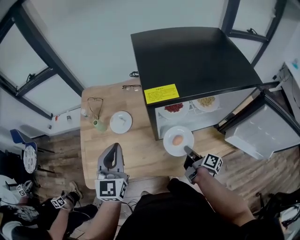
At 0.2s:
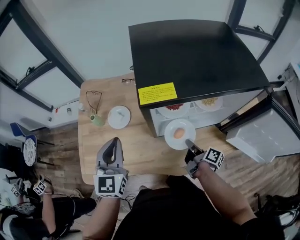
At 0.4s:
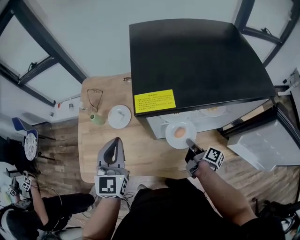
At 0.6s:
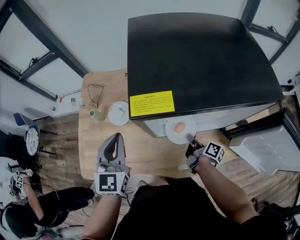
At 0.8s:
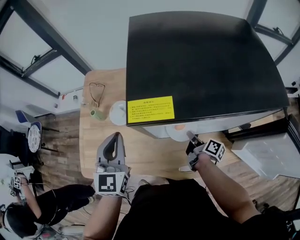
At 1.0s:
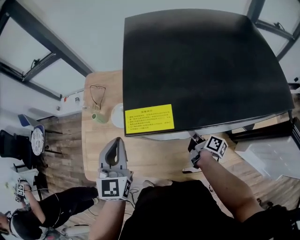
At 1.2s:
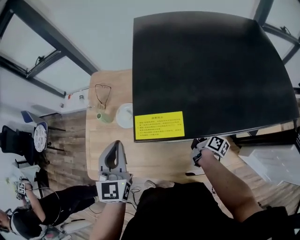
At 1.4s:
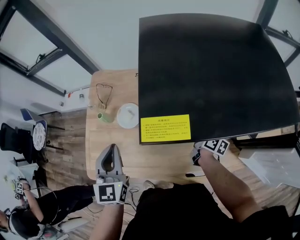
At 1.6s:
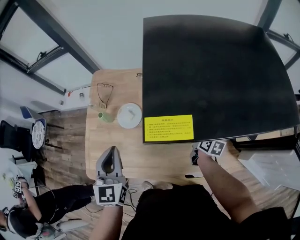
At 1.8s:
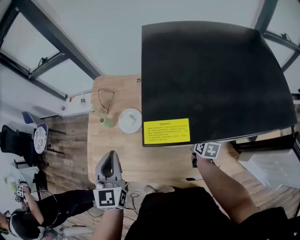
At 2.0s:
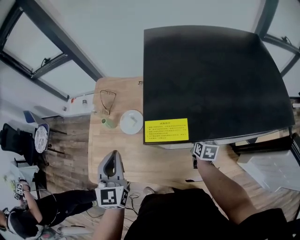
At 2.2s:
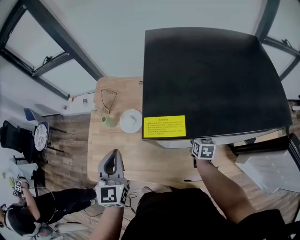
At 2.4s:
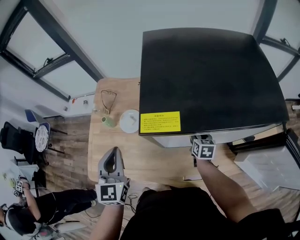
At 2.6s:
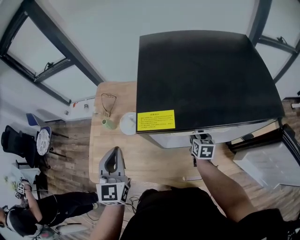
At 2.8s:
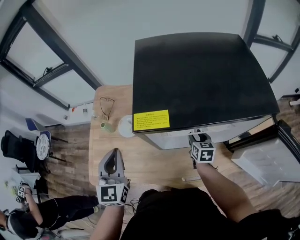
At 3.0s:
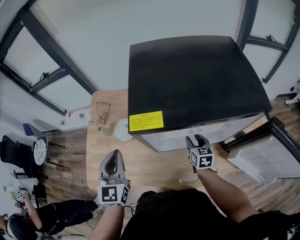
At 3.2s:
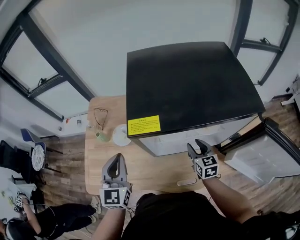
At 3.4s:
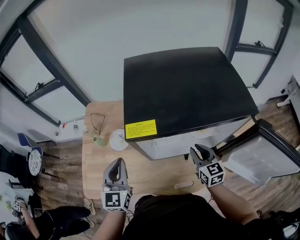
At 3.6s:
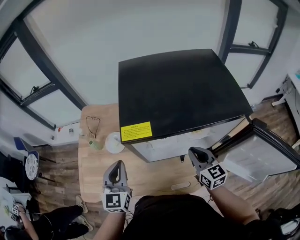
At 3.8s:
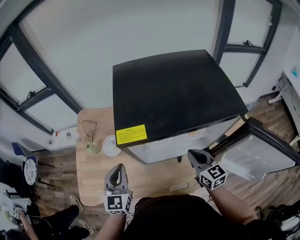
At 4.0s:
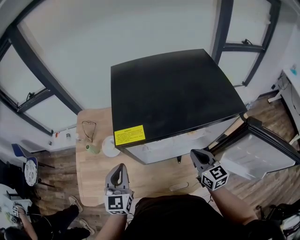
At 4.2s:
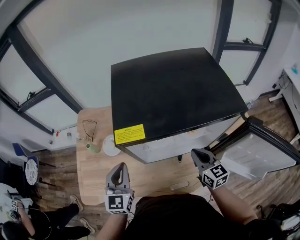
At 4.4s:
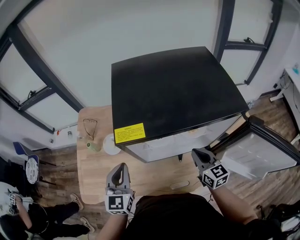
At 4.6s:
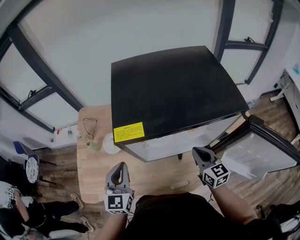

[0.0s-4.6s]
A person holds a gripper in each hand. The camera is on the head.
0.0s to 1.6s: The right gripper is displaced forward by roughly 15 cm, and rotates some 40 degrees.
1.6s to 3.0s: The left gripper moves some 5 cm. Meanwhile the right gripper is displaced upward by roughly 5 cm, swivels some 30 degrees, and opens.
3.0s to 4.6s: The left gripper shifts some 5 cm to the right, while the right gripper travels upward, backward and to the right by roughly 15 cm, and closes.

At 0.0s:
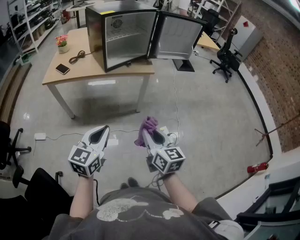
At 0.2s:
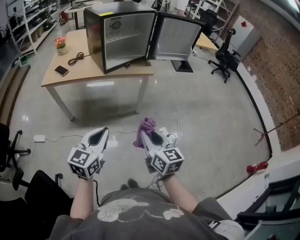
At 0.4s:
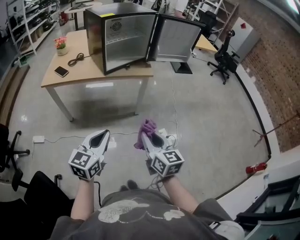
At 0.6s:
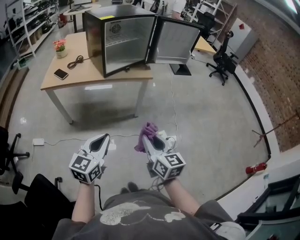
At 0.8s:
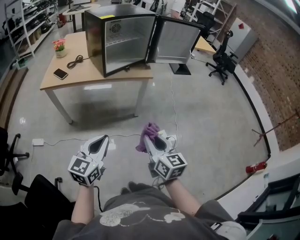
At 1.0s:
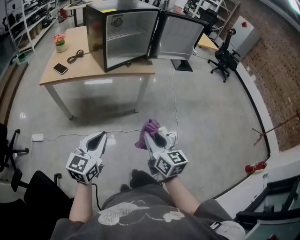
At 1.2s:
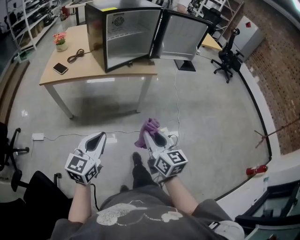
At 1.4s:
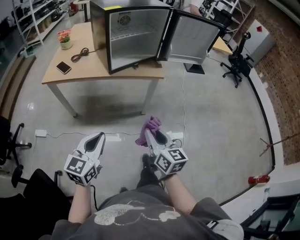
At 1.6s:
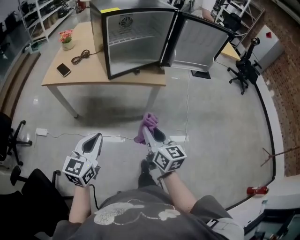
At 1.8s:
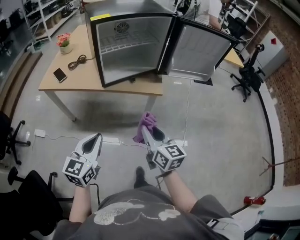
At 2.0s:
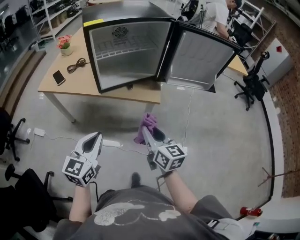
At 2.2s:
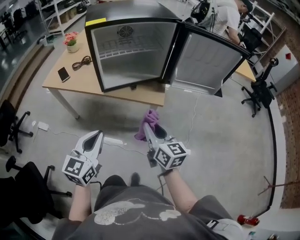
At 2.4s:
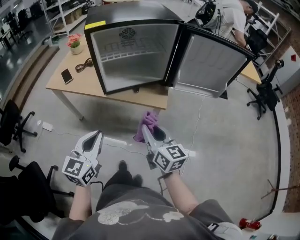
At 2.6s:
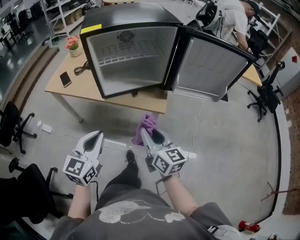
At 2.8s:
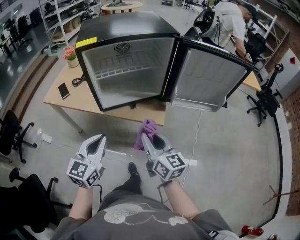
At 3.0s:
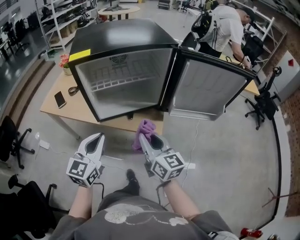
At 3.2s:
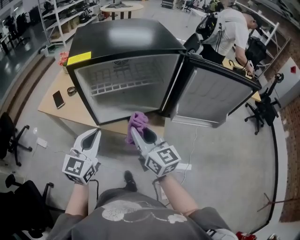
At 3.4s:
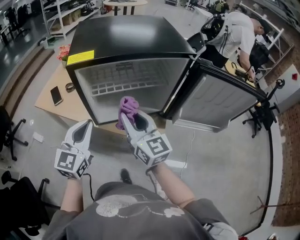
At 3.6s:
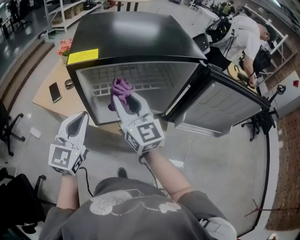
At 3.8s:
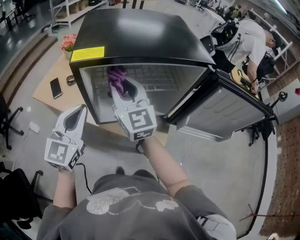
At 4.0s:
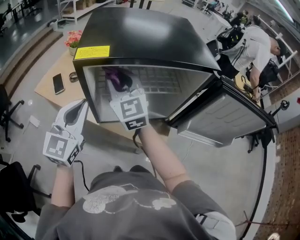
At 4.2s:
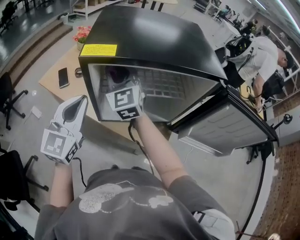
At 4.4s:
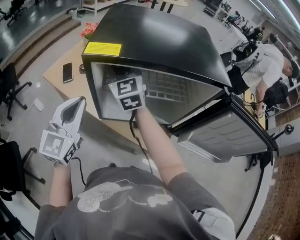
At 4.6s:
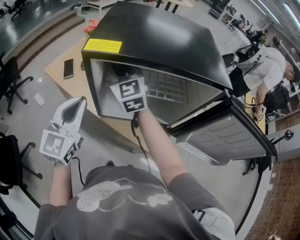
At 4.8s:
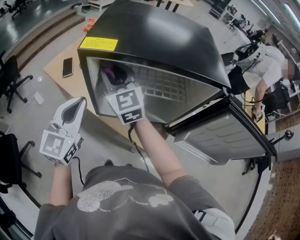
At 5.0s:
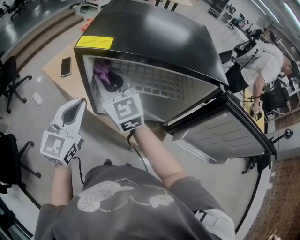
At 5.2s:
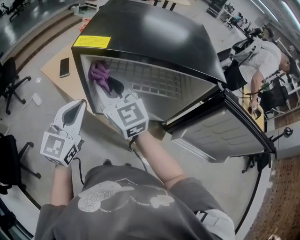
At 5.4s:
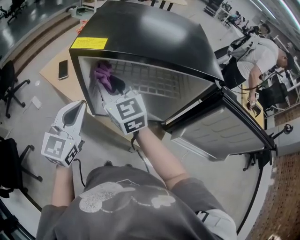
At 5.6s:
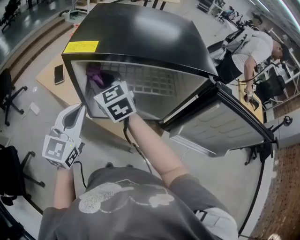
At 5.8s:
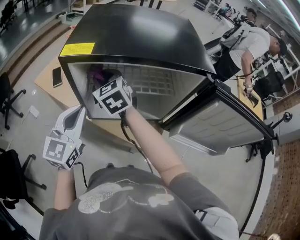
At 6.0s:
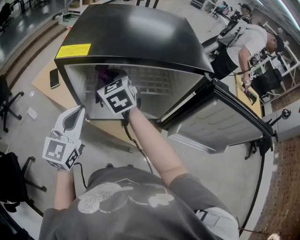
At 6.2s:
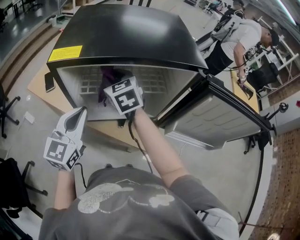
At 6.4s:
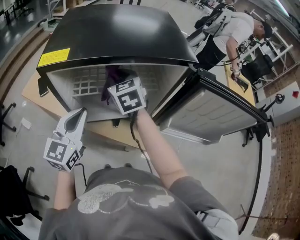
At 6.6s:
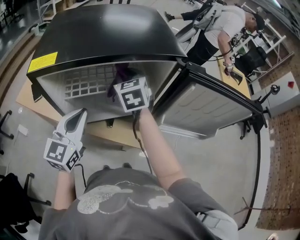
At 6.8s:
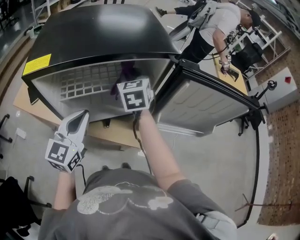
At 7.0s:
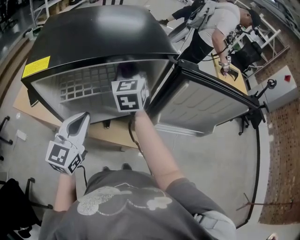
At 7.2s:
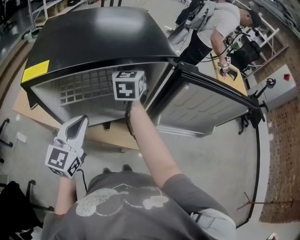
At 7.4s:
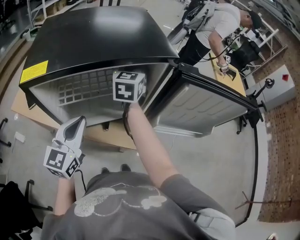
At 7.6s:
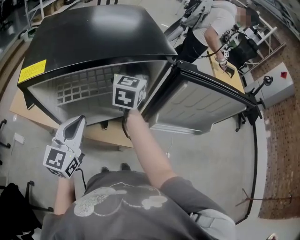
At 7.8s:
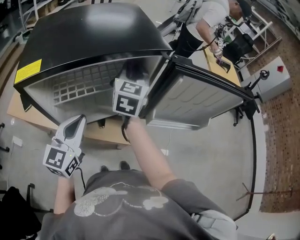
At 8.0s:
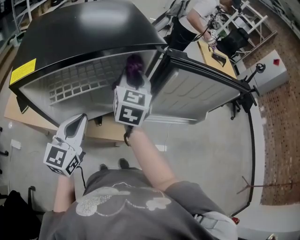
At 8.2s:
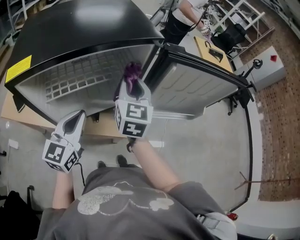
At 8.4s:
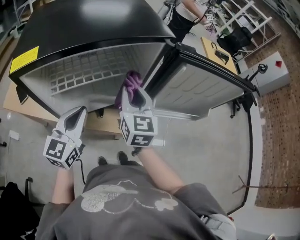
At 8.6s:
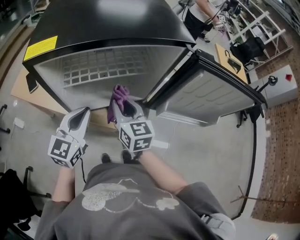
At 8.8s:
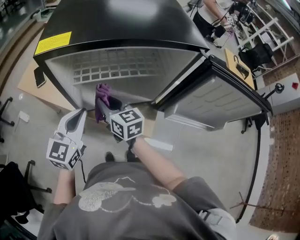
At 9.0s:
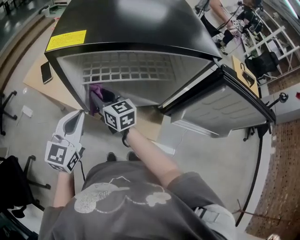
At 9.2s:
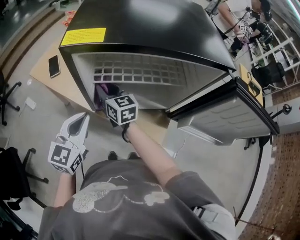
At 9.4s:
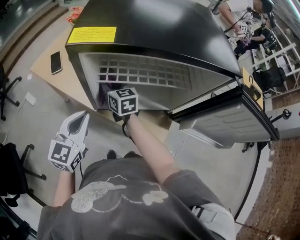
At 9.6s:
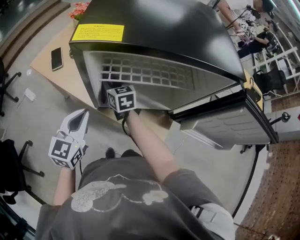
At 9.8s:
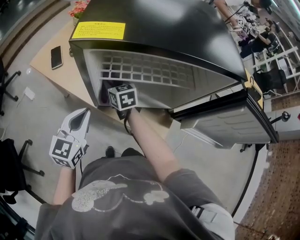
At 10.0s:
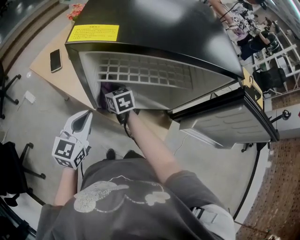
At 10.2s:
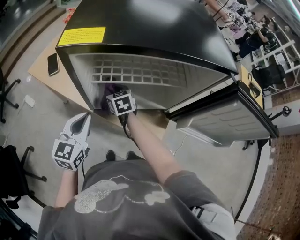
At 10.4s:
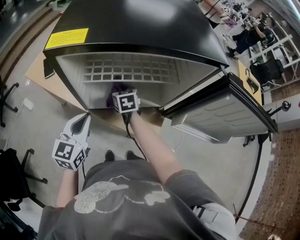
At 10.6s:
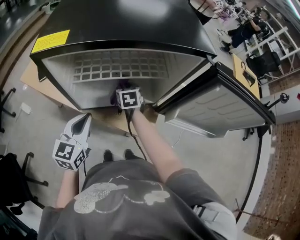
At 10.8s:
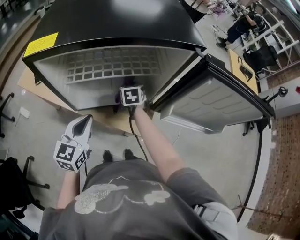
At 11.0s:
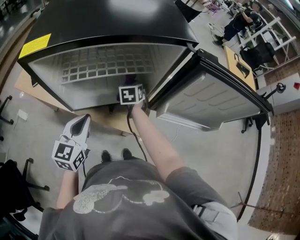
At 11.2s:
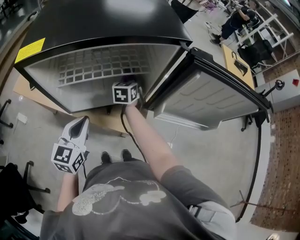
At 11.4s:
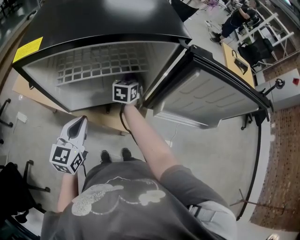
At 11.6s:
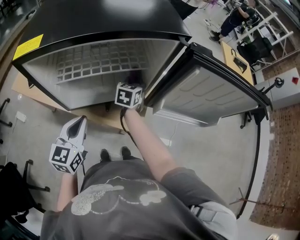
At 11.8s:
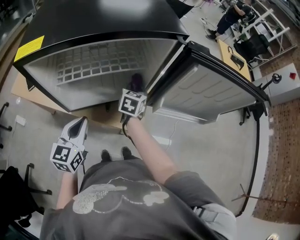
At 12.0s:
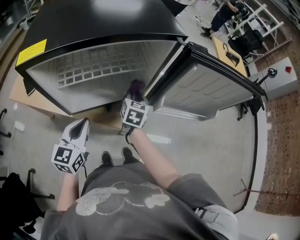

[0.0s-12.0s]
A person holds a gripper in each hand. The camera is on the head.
0.0s to 1.6s: The left gripper goes some 10 cm forward. The right gripper heads forward, covering about 20 cm.
1.6s to 3.0s: The right gripper travels forward by approximately 25 cm. Meanwhile the left gripper goes about 30 cm forward and to the right.
3.0s to 4.4s: The left gripper is displaced forward, to the left and upward by some 20 cm, and rotates about 20 degrees, while the right gripper heads forward and to the left, covering approximately 40 cm, and changes its angle by roughly 40 degrees.
4.4s to 6.0s: The left gripper goes roughly 5 cm to the right. Meanwhile the right gripper goes backward and returns, roughly 10 cm each way, and rotates approximately 20 degrees.
6.0s to 7.6s: The left gripper shifts by some 10 cm. The right gripper shifts by roughly 25 cm, and rotates some 50 degrees.
7.6s to 9.0s: The right gripper shifts by roughly 30 cm, and rotates about 60 degrees. The left gripper shifts by approximately 10 cm.
9.0s to 10.4s: The right gripper moves downward, to the right and forward, some 15 cm, and turns by some 30 degrees. The left gripper moves downward, some 5 cm.
10.4s to 12.0s: The right gripper shifts by about 20 cm, and swivels approximately 40 degrees, while the left gripper changes place by roughly 5 cm.

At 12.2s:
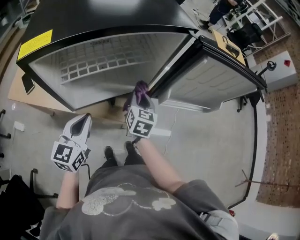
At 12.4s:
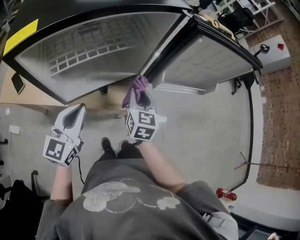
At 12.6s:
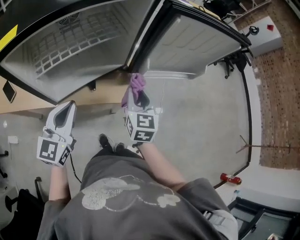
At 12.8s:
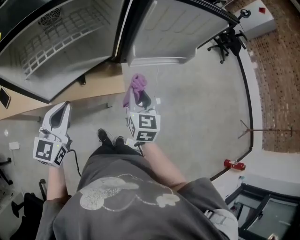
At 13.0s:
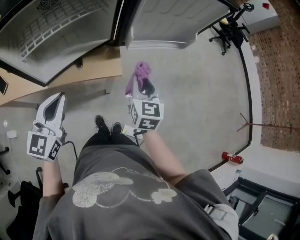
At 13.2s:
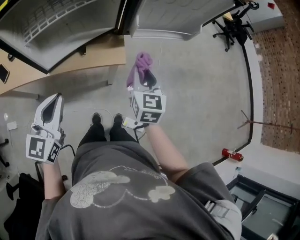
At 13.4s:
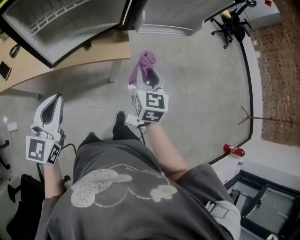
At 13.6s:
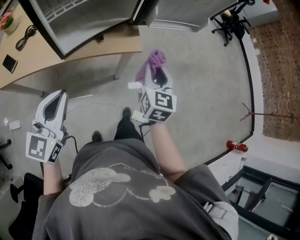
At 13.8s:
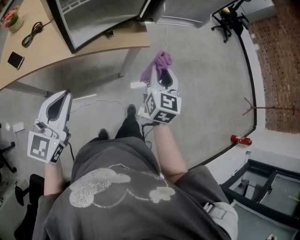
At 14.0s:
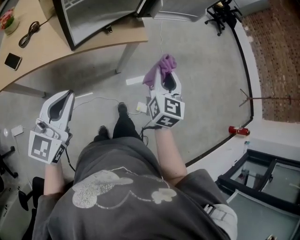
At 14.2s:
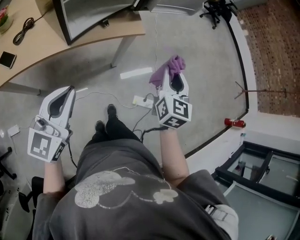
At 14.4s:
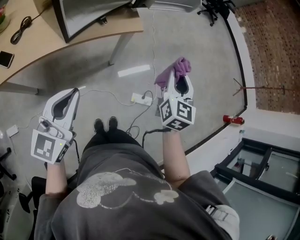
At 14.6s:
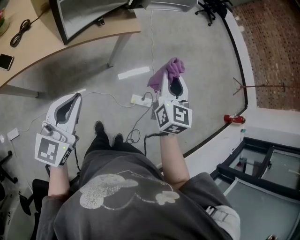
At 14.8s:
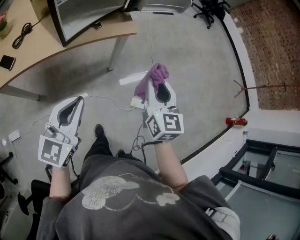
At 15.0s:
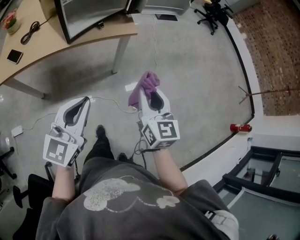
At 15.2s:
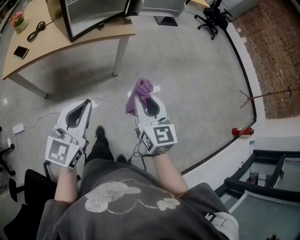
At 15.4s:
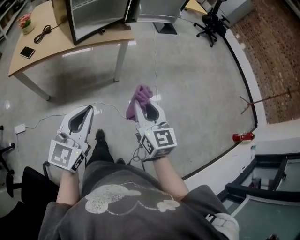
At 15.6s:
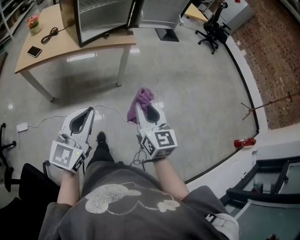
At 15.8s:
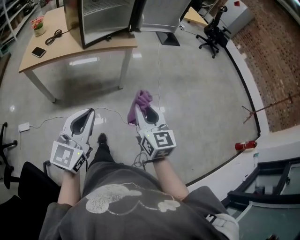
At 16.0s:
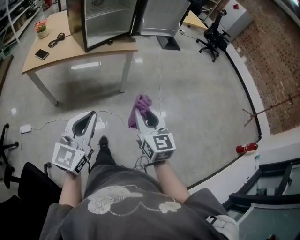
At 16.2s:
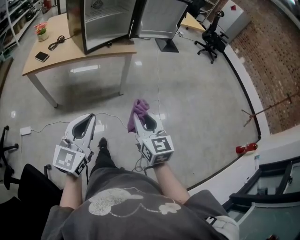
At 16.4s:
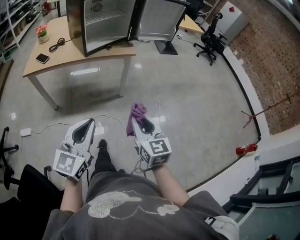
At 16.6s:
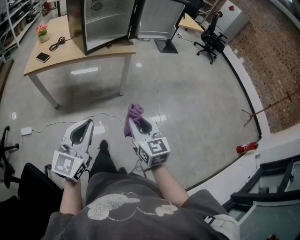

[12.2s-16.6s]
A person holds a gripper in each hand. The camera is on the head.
12.2s to 13.6s: The left gripper travels backward by about 15 cm, and changes its angle by approximately 20 degrees. The right gripper heads backward and to the right, covering approximately 25 cm.
13.6s to 15.2s: The left gripper moves backward and to the right, roughly 25 cm. The right gripper moves backward, approximately 30 cm.
15.2s to 16.6s: The grippers both shift backward by about 15 cm.

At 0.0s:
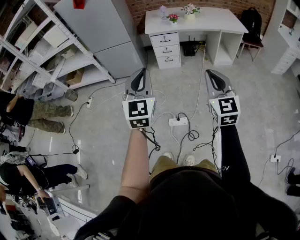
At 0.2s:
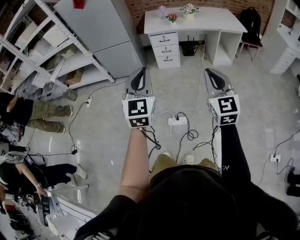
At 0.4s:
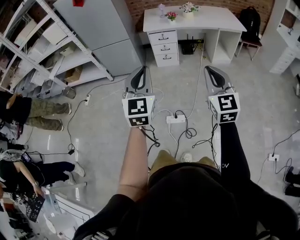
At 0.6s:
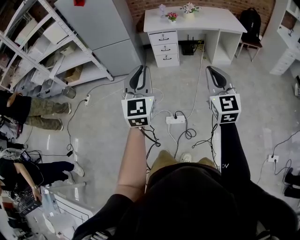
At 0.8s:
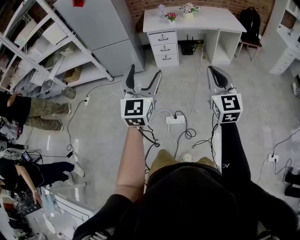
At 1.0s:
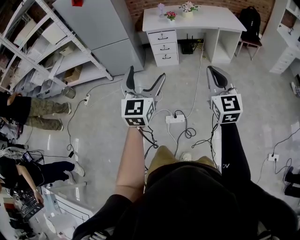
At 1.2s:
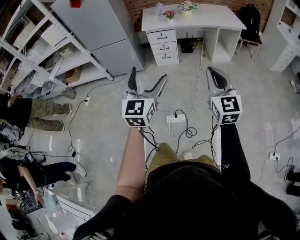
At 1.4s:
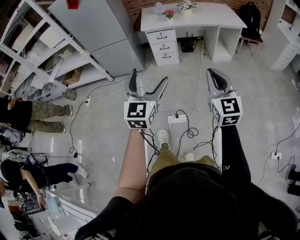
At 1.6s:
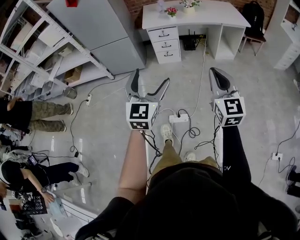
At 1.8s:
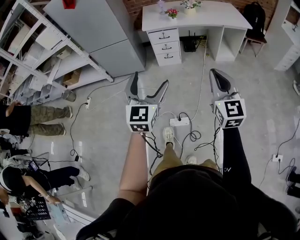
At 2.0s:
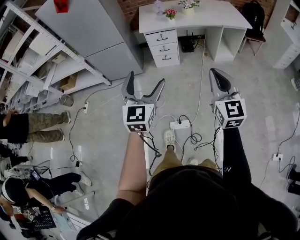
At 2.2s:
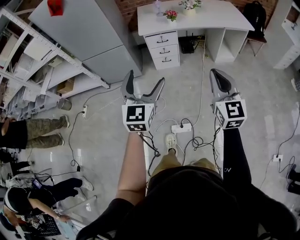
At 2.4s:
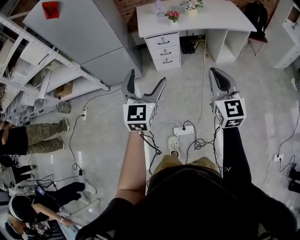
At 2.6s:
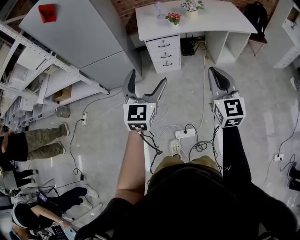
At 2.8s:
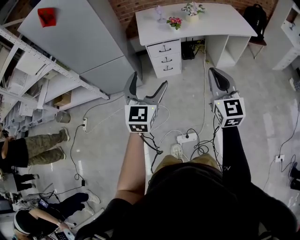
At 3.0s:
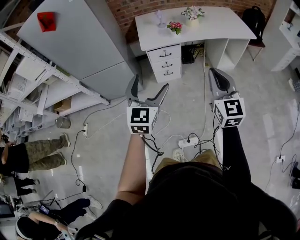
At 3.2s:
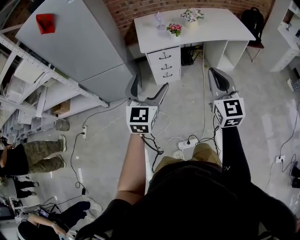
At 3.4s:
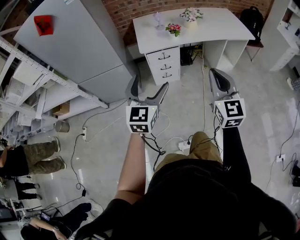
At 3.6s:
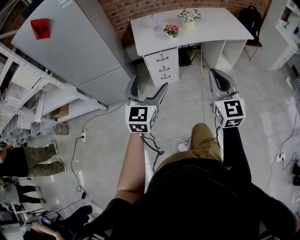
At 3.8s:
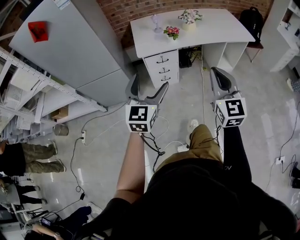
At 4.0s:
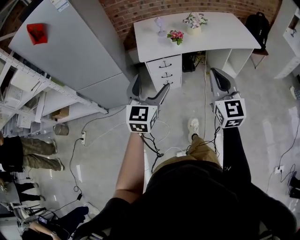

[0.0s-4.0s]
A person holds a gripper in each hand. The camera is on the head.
0.0s to 1.4s: The left gripper changes place by roughly 5 cm, and opens up.
1.4s to 2.6s: The two grippers go approximately 25 cm forward.
2.6s to 4.0s: Both grippers move forward, about 15 cm.
